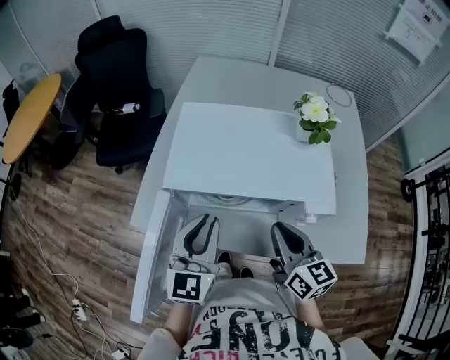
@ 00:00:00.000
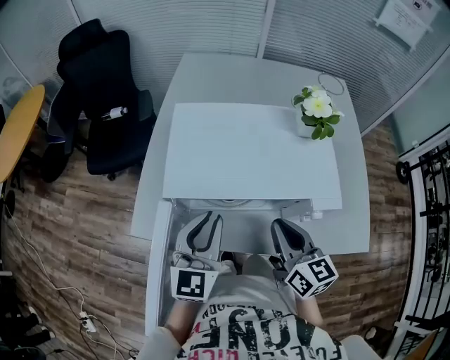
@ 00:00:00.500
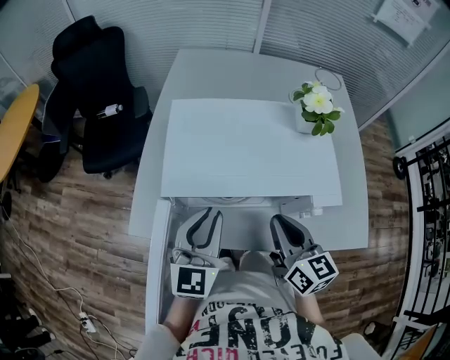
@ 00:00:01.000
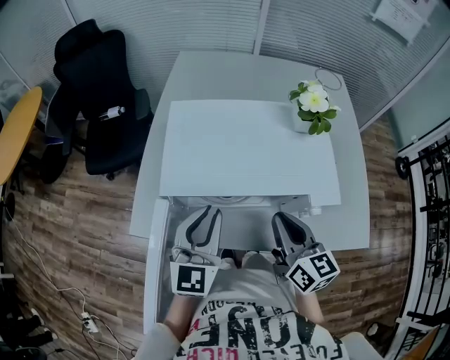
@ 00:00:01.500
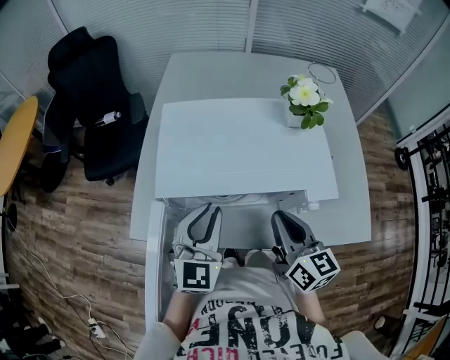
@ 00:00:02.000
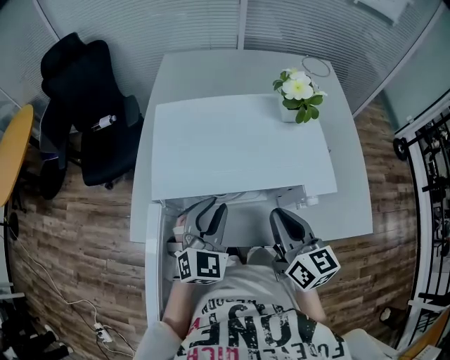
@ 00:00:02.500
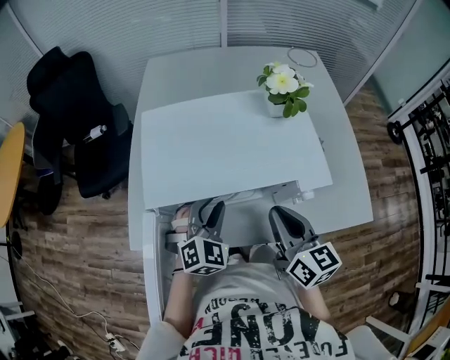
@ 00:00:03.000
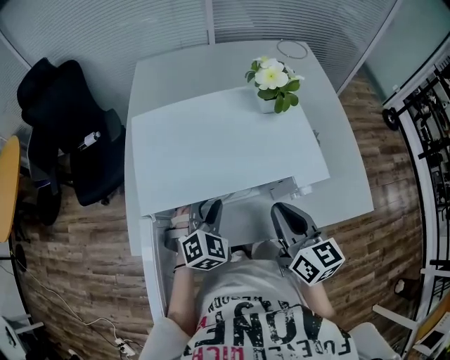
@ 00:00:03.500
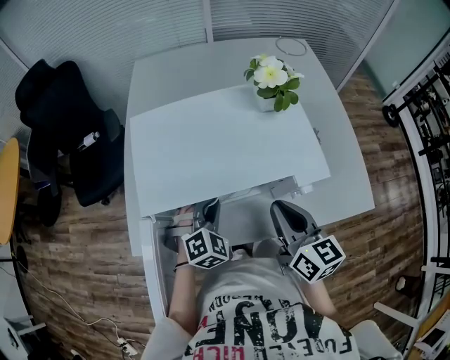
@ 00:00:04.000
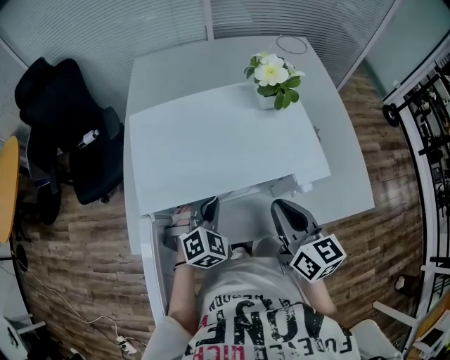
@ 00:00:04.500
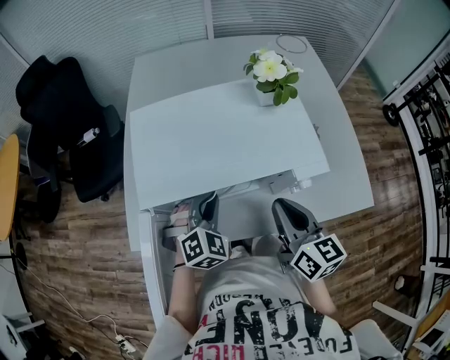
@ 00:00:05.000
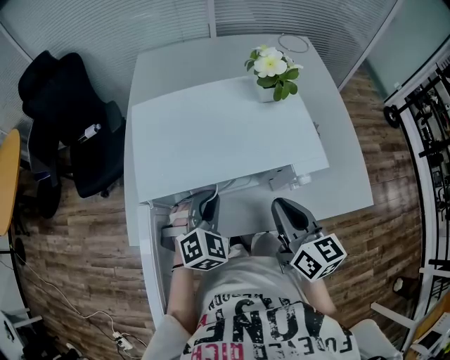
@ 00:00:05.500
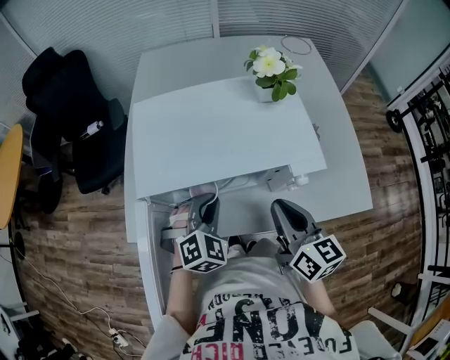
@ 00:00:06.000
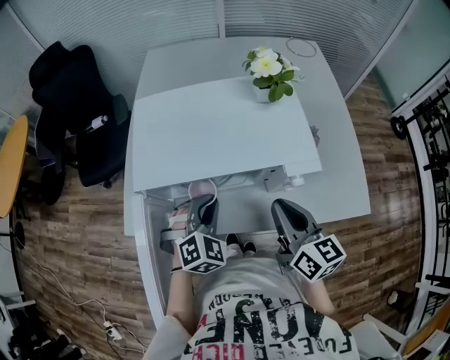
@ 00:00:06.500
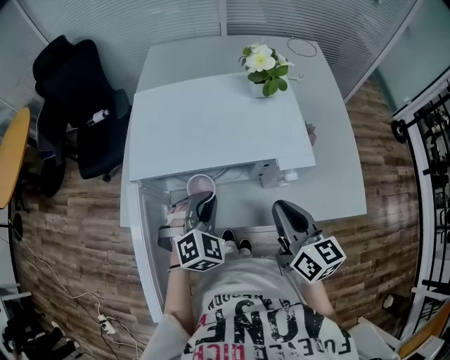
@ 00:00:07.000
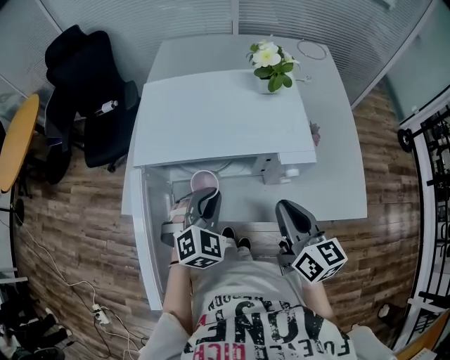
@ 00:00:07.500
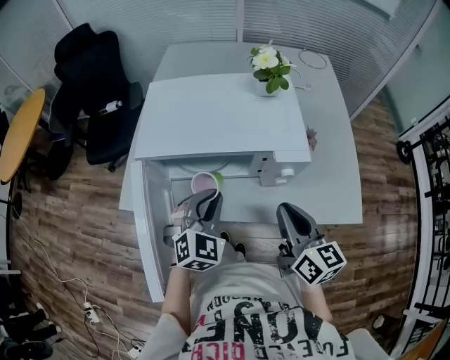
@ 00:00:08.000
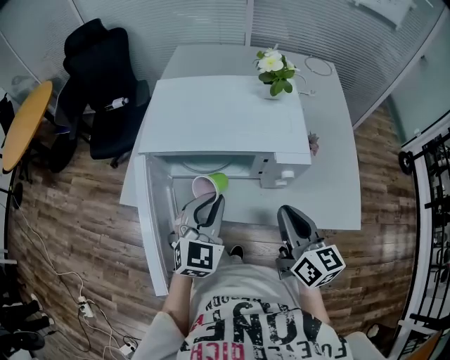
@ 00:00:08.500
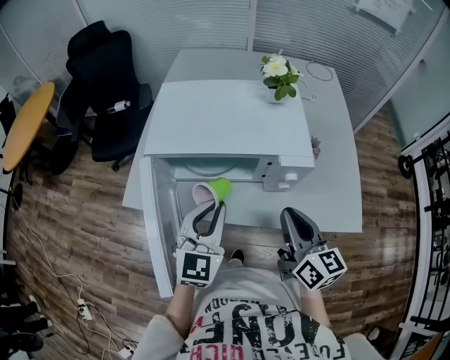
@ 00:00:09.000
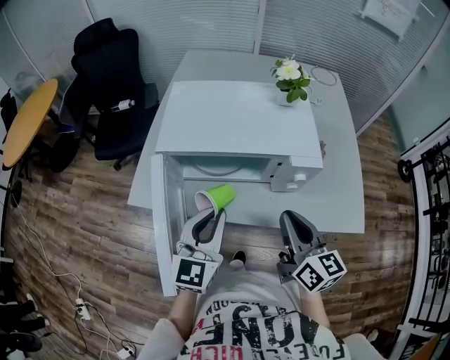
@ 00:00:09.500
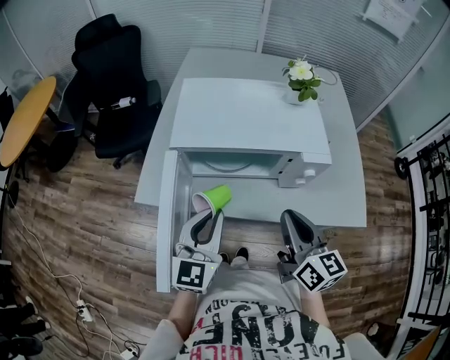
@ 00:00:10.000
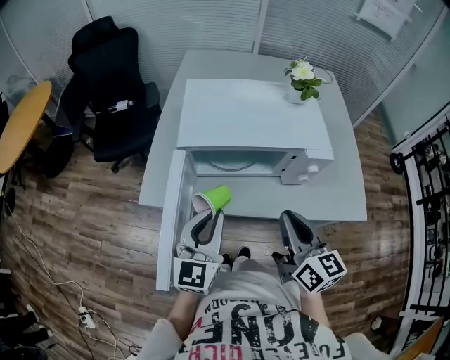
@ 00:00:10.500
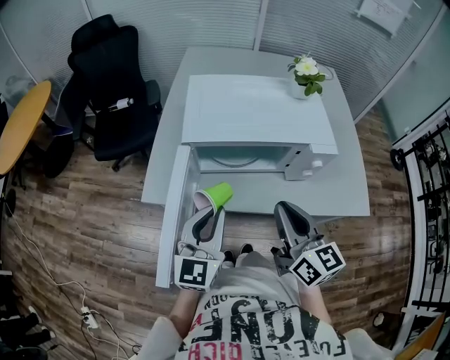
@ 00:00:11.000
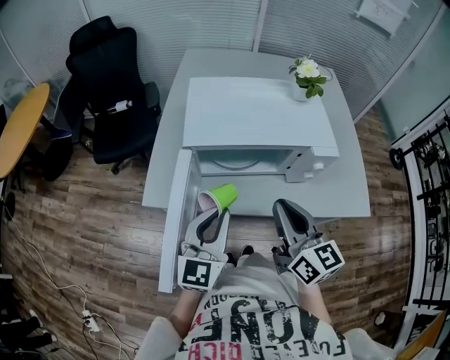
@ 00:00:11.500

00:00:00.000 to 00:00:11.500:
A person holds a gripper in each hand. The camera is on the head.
00:00:00.000 to 00:00:02.000: The grippers stay close to where they were, moving slightly.
00:00:02.000 to 00:00:04.000: The left gripper goes some 15 cm downward, and tips its fingers downward by some 30 degrees.
00:00:04.000 to 00:00:06.000: The left gripper moves approximately 5 cm.
00:00:06.000 to 00:00:07.500: The right gripper changes place by some 5 cm; the left gripper shifts by about 5 cm.
00:00:07.500 to 00:00:09.500: The left gripper shifts roughly 10 cm upward and backward, and angles its fingers upward, by roughly 30 degrees.
00:00:09.500 to 00:00:11.500: Both grippers travel together to the left, roughly 10 cm.

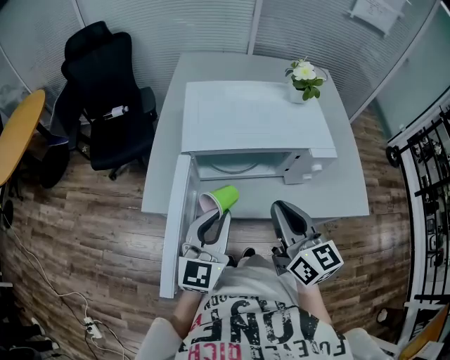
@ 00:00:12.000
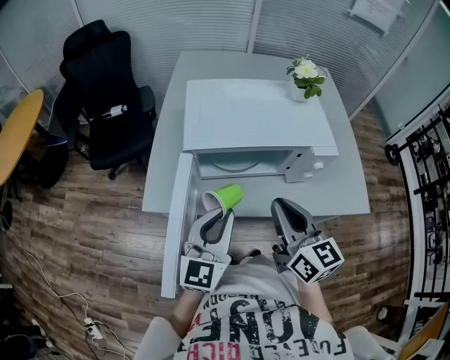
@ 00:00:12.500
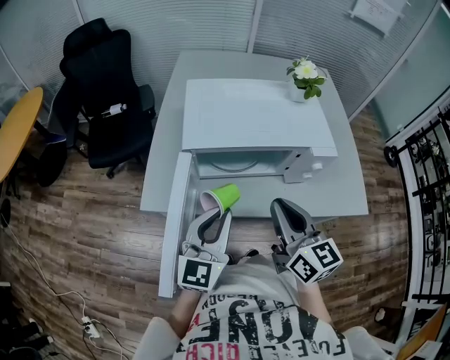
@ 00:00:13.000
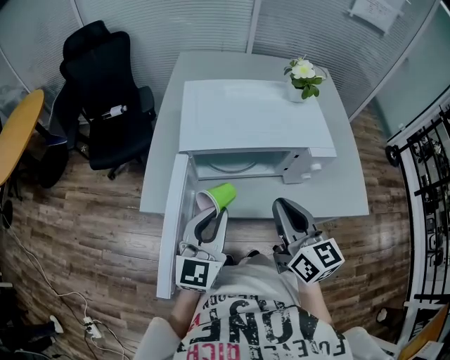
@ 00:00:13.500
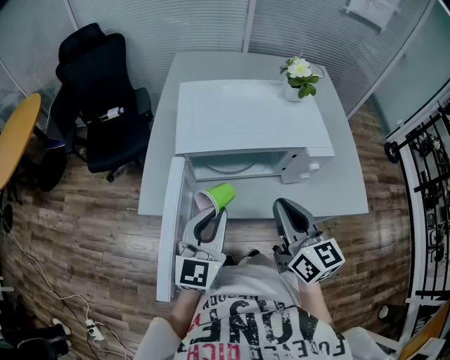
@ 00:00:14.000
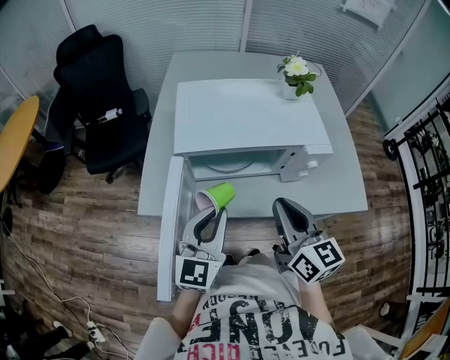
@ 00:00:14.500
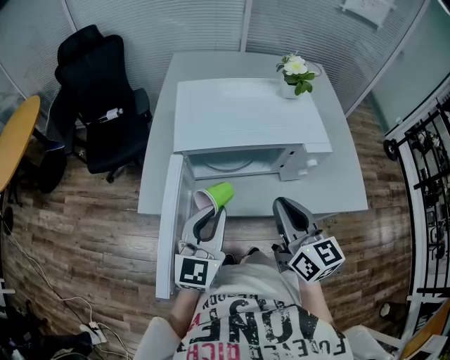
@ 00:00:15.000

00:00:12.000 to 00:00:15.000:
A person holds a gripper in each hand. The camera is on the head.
00:00:12.000 to 00:00:13.500: Both grippers stay about where they are.
00:00:13.500 to 00:00:15.000: Both grippers stay about where they are.

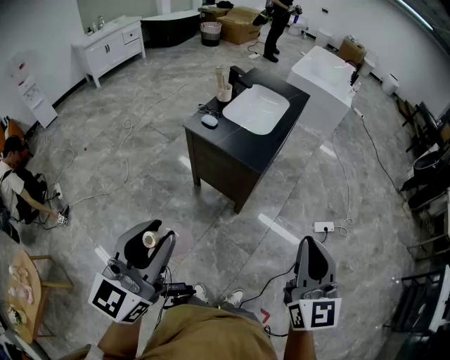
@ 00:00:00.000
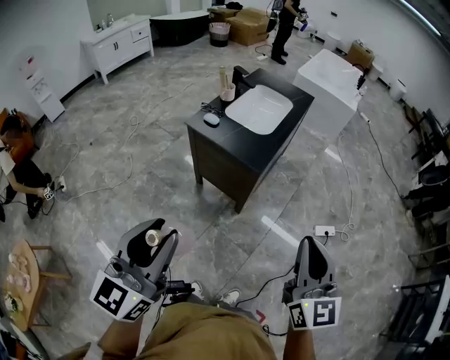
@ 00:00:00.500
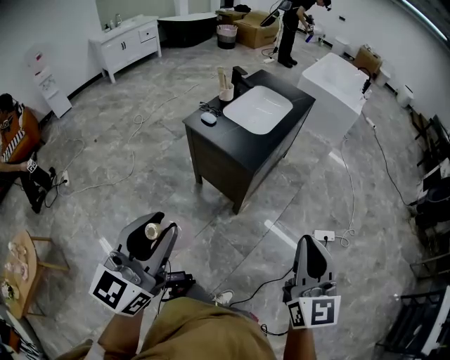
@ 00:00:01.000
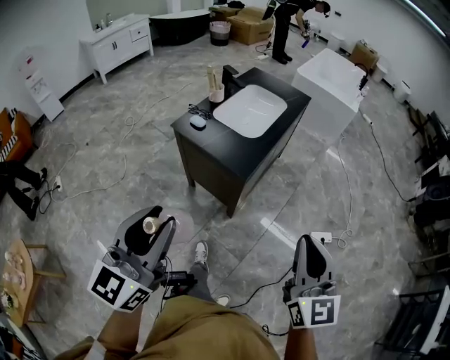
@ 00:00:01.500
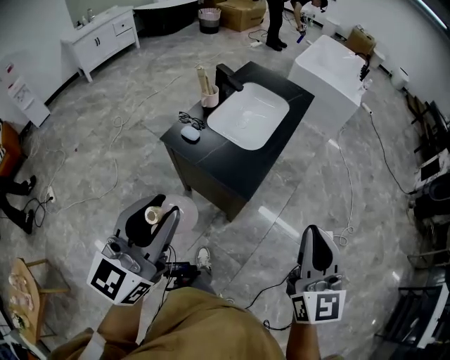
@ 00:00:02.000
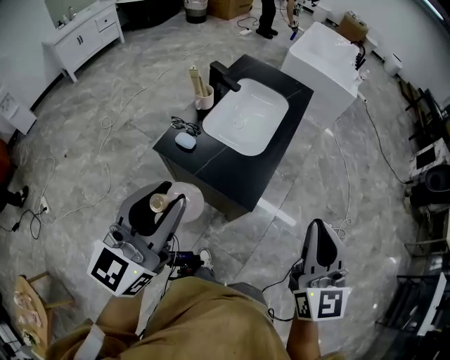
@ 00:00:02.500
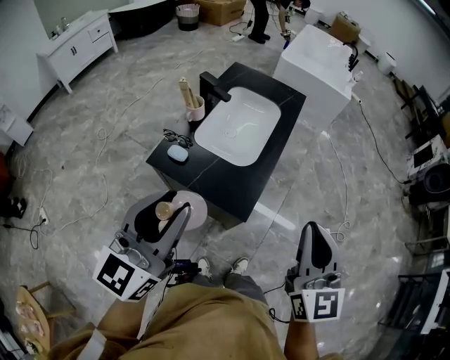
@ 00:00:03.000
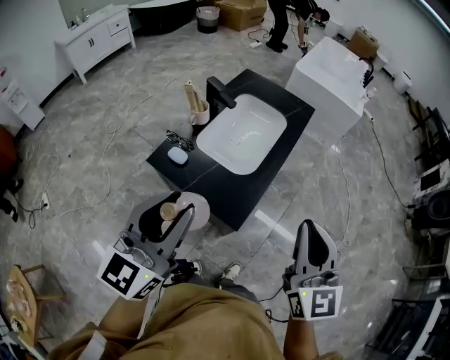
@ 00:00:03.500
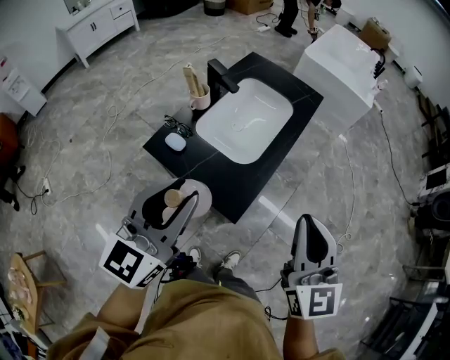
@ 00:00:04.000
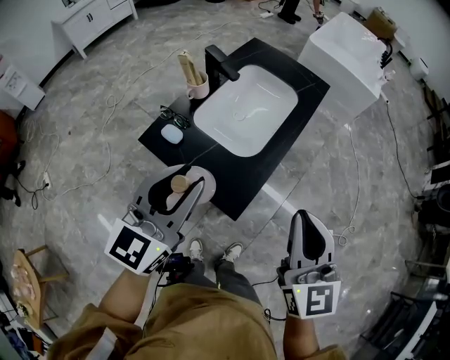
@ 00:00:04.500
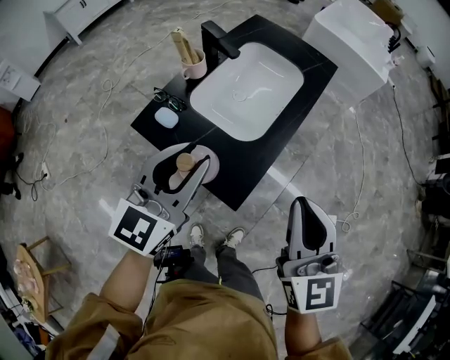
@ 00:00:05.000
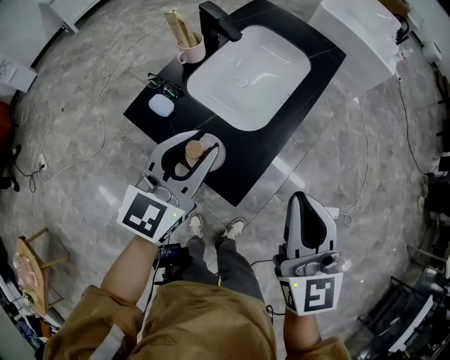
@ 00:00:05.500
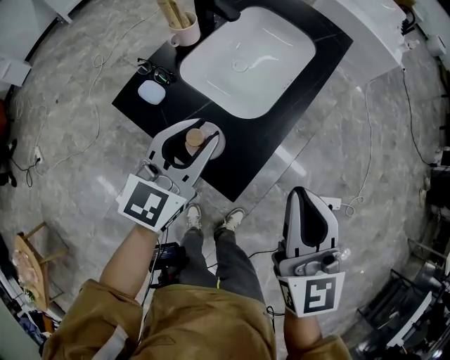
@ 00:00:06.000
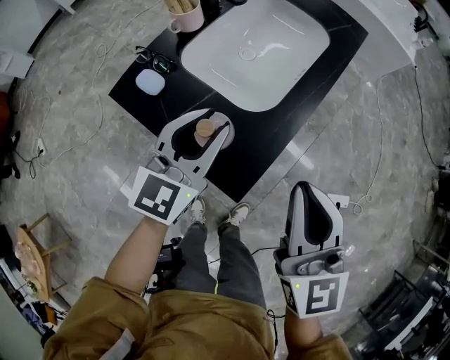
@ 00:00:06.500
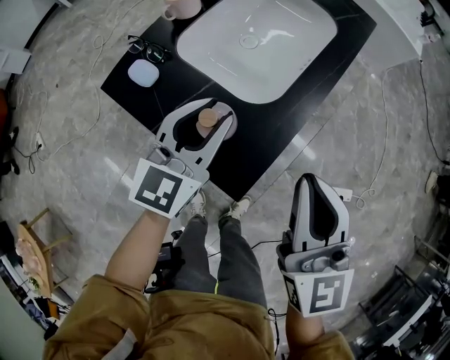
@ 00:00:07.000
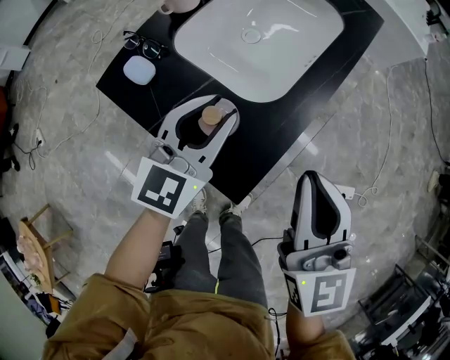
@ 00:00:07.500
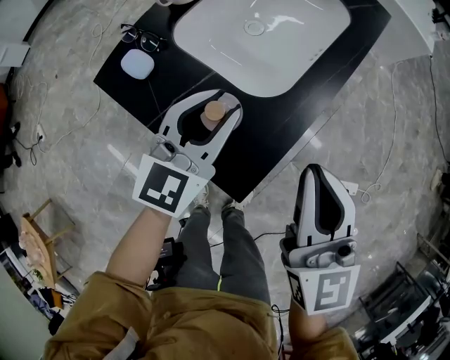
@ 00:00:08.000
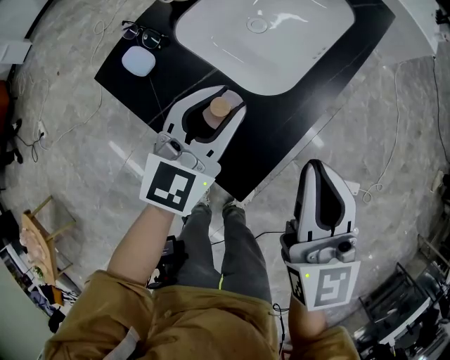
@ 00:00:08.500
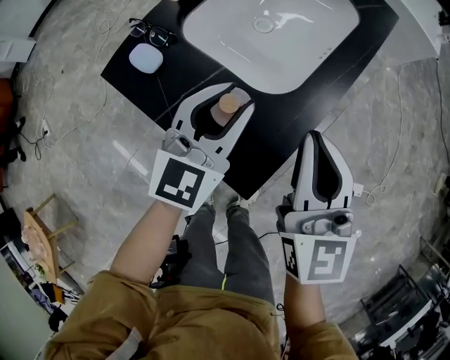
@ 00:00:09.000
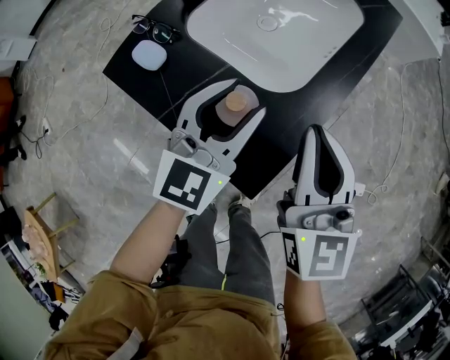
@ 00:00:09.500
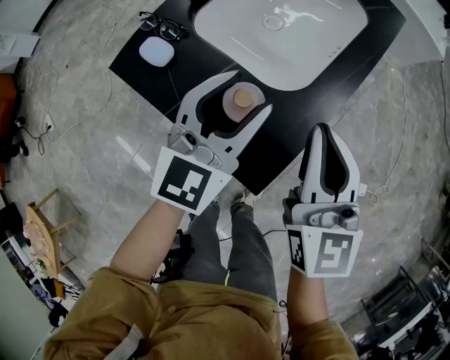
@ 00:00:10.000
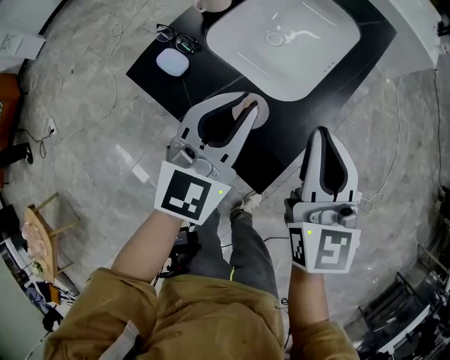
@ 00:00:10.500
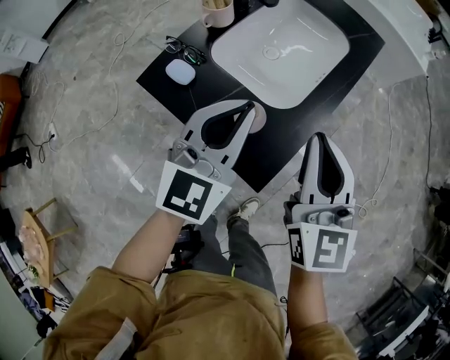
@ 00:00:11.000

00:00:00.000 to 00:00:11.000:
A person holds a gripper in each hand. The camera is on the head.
00:00:00.000 to 00:00:02.000: The two grippers go about 20 cm forward.
00:00:02.000 to 00:00:03.500: Both grippers move forward, approximately 15 cm.
00:00:03.500 to 00:00:05.500: The left gripper goes some 20 cm downward and forward; the right gripper heads downward and forward, covering roughly 10 cm.
00:00:05.500 to 00:00:07.500: The left gripper moves downward and forward, about 15 cm. Meanwhile the right gripper heads downward, covering some 10 cm.
00:00:07.500 to 00:00:09.000: The right gripper ends up roughly 5 cm from where it was.
00:00:09.000 to 00:00:11.000: The grippers both shift upward by approximately 10 cm. The left gripper closes up.

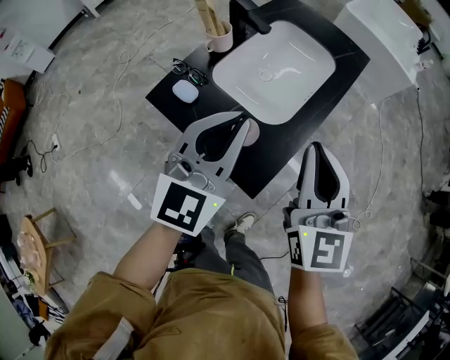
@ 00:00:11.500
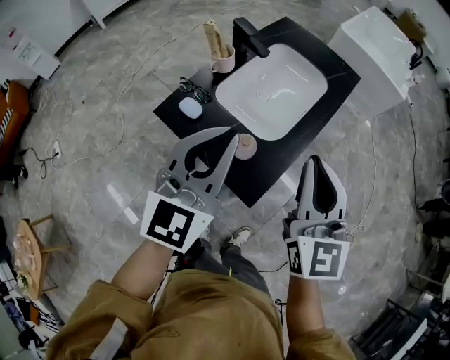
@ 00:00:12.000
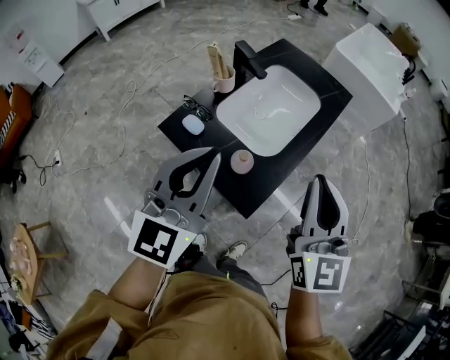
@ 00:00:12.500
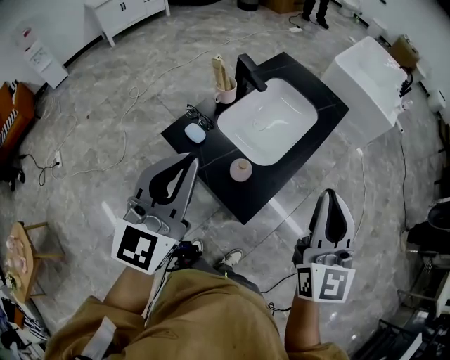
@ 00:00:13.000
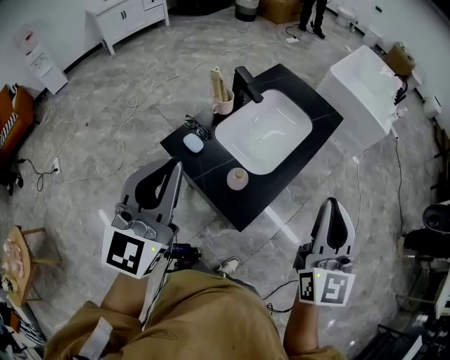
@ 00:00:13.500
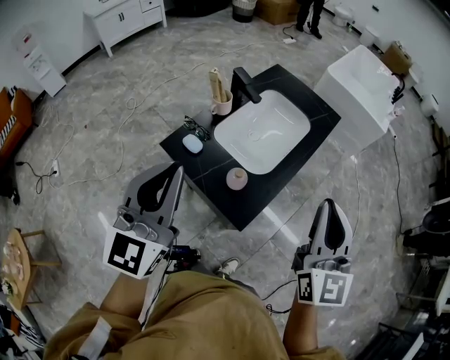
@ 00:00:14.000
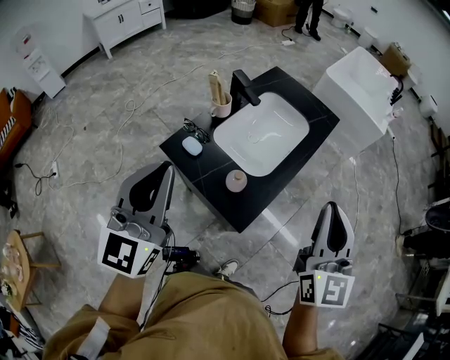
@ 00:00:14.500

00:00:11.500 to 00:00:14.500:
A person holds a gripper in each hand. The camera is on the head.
00:00:11.500 to 00:00:13.000: The left gripper goes roughly 15 cm upward, to the left and backward. Meanwhile the right gripper travels upward by approximately 10 cm.
00:00:13.000 to 00:00:14.500: The grippers stay close to where they were, moving slightly.
